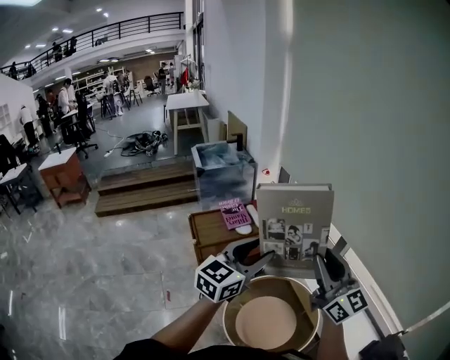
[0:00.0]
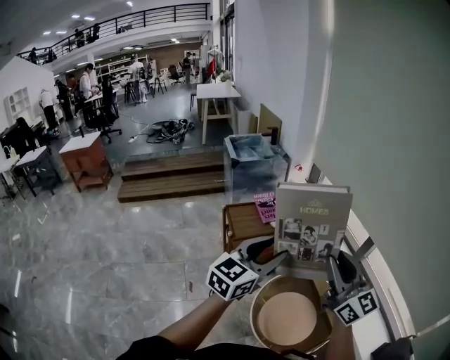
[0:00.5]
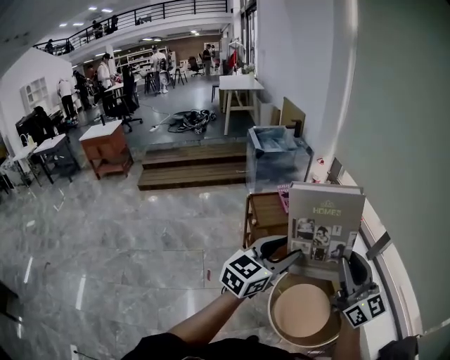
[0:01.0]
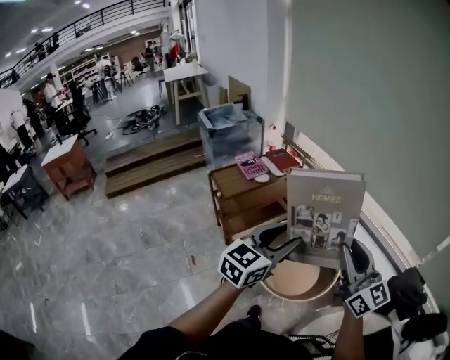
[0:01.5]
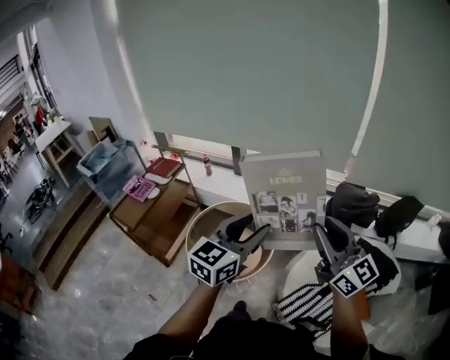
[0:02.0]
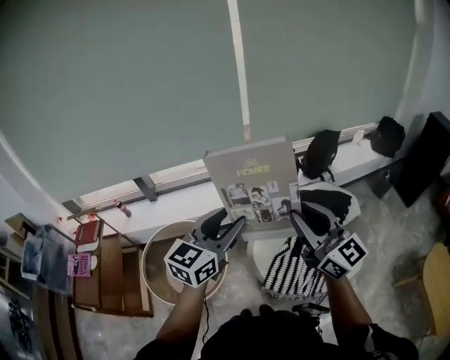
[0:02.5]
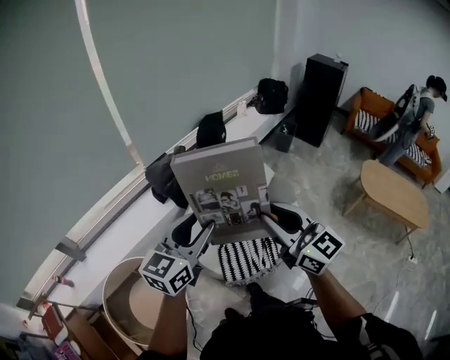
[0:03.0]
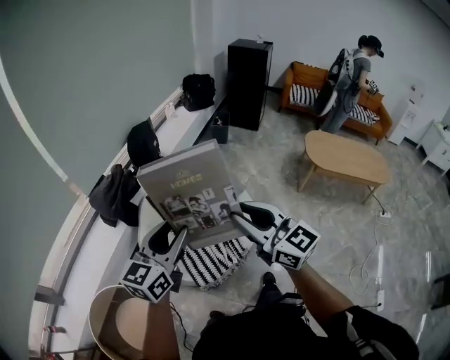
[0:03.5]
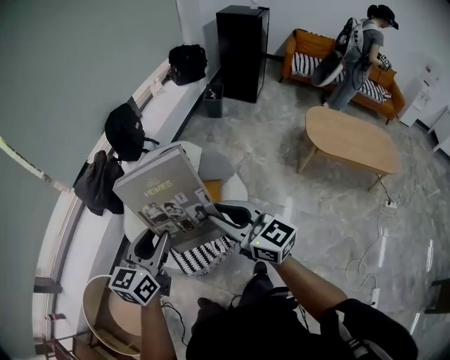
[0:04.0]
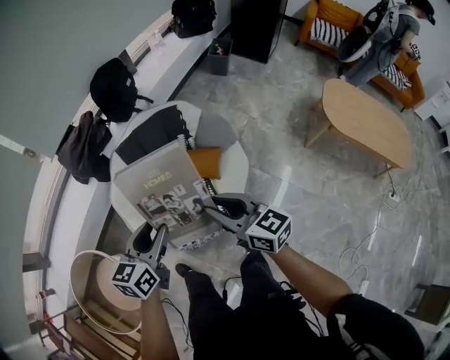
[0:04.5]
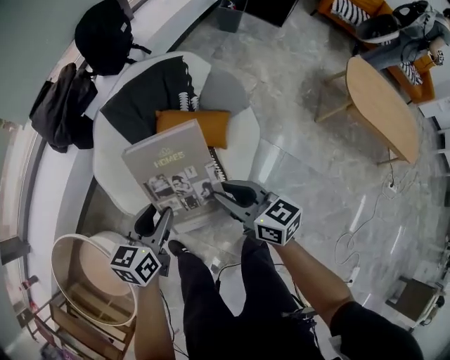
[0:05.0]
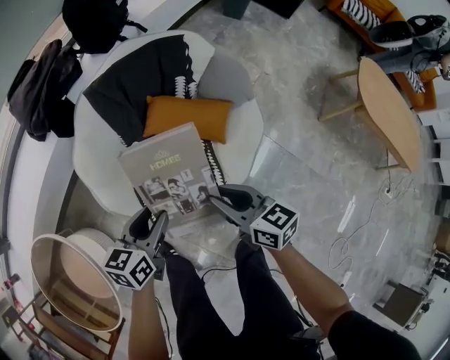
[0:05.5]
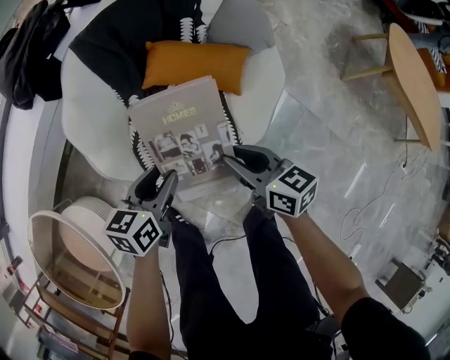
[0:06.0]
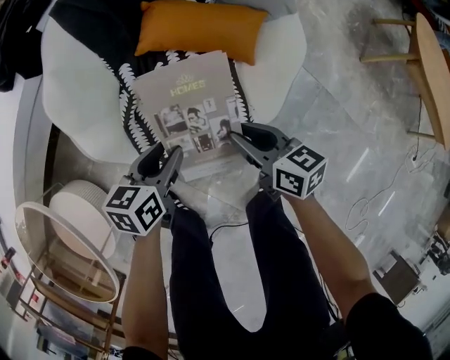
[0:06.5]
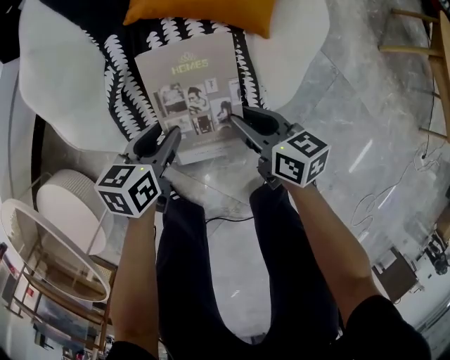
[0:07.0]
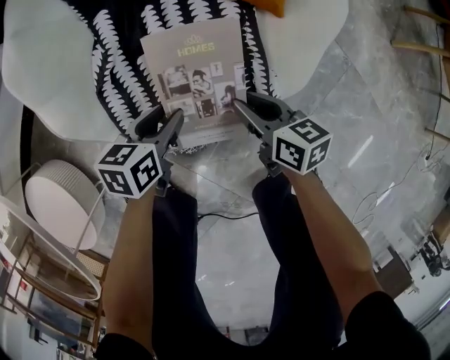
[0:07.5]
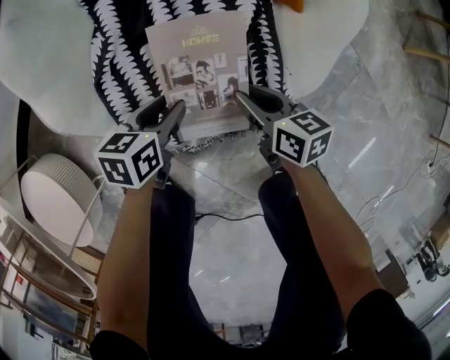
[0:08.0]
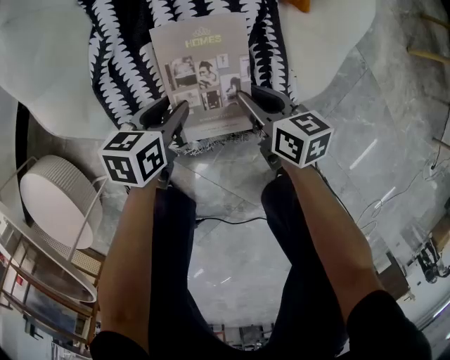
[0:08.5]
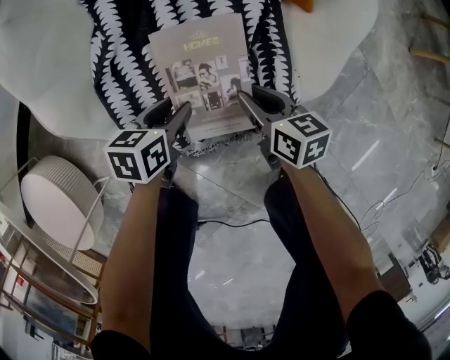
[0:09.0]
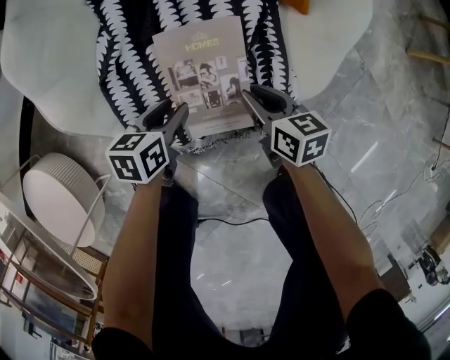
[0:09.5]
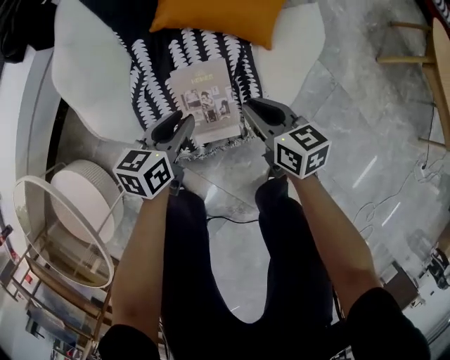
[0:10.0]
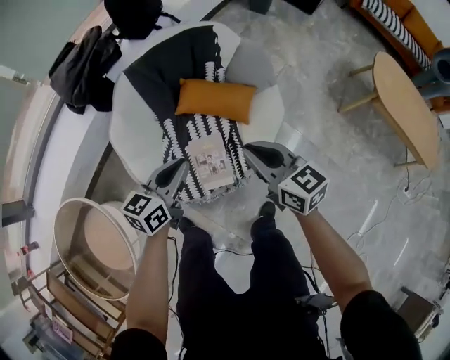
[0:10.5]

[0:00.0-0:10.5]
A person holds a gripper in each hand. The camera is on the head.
0:00.0 to 0:02.0: The right gripper ends up about 40 cm from where it was, and swivels roughly 40 degrees. Meanwhile the left gripper changes place by about 30 cm, and turns by roughly 40 degrees.
0:02.0 to 0:04.0: The two grippers travel together, approximately 50 cm. The right gripper swivels roughly 60 degrees. Meanwhile the left gripper rotates some 60 degrees.
0:04.0 to 0:06.5: The right gripper moves up and down over approximately 40 cm, changing direction 2 times. Meanwhile the left gripper swings up and down, approximately 40 cm each way, with 2 reversals.
0:06.5 to 0:08.5: The grippers make only small movements.
0:08.5 to 0:10.5: The right gripper shifts some 50 cm upward and backward, and rotates some 30 degrees, while the left gripper heads upward, covering approximately 40 cm, rotates about 30 degrees, and closes its fingers.

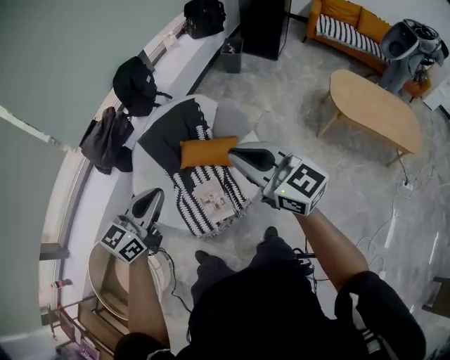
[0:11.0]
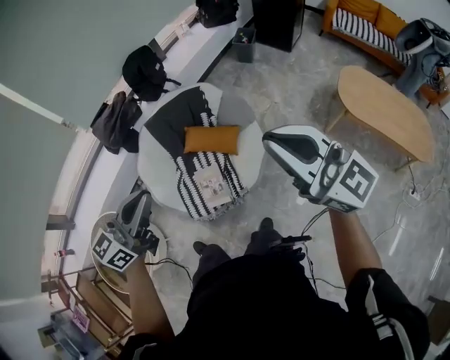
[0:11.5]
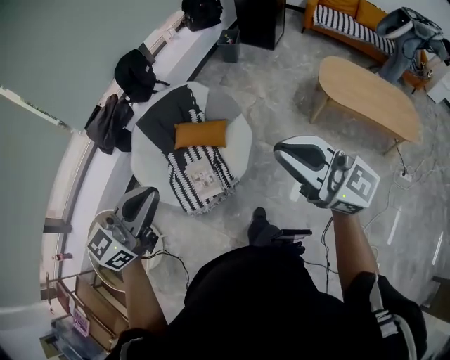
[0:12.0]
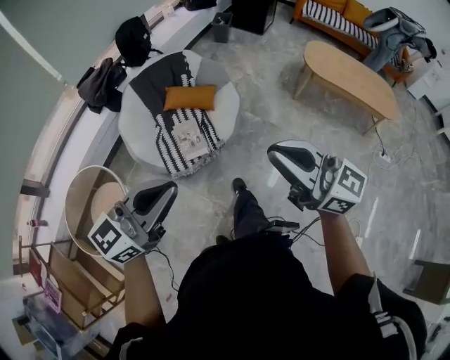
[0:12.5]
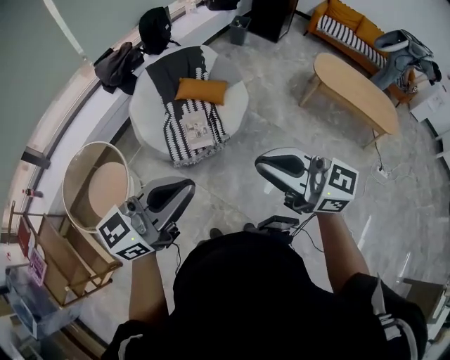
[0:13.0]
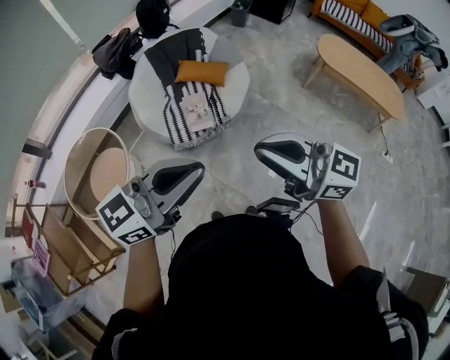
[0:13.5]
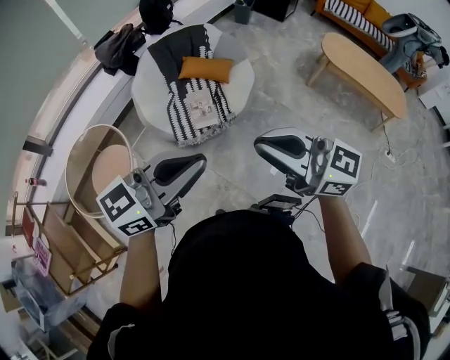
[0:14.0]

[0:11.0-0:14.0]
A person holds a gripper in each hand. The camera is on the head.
0:11.0 to 0:12.5: Both grippers travel together backward, some 40 cm.
0:12.5 to 0:14.0: The left gripper shifts by approximately 10 cm, while the right gripper moves some 10 cm.

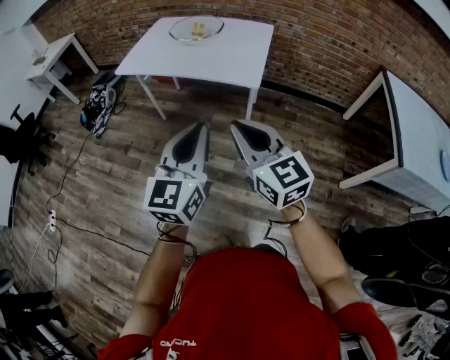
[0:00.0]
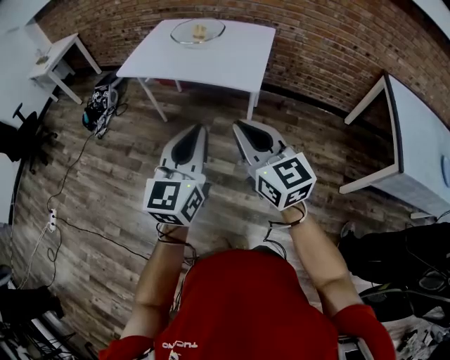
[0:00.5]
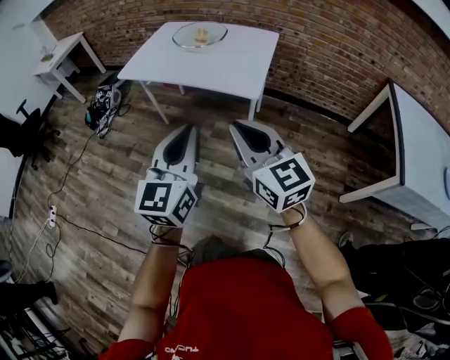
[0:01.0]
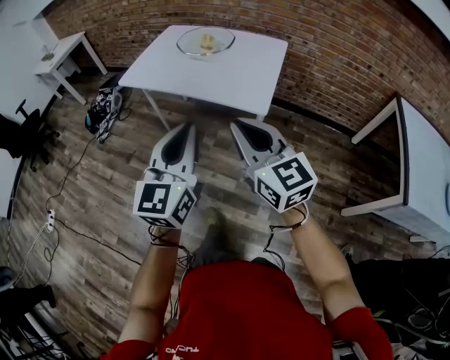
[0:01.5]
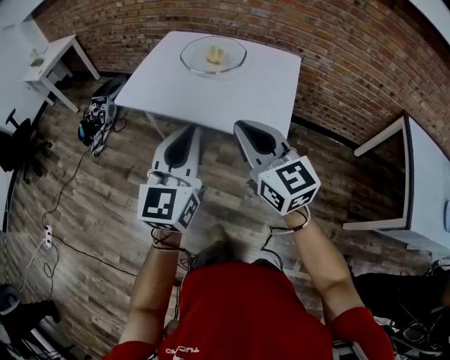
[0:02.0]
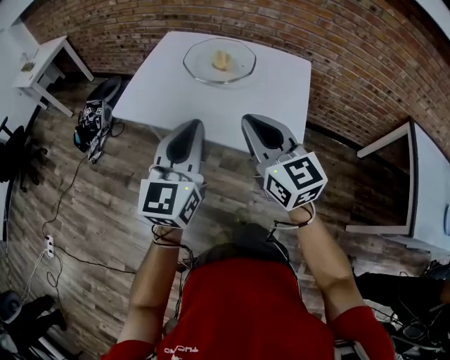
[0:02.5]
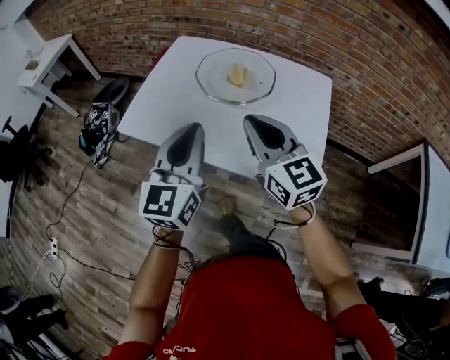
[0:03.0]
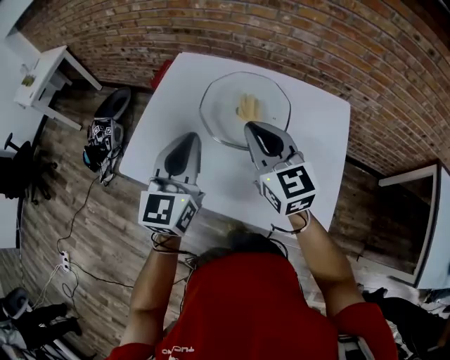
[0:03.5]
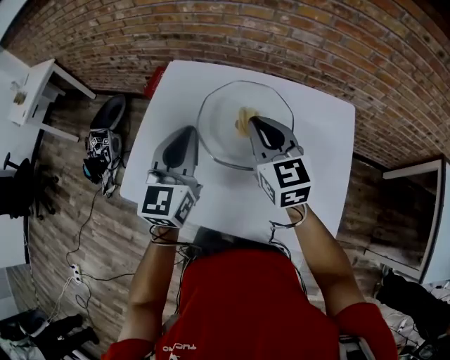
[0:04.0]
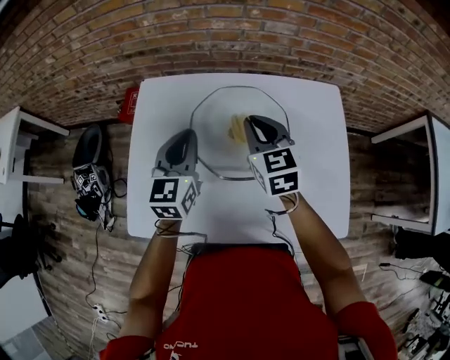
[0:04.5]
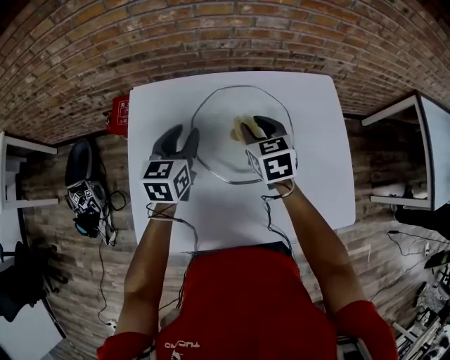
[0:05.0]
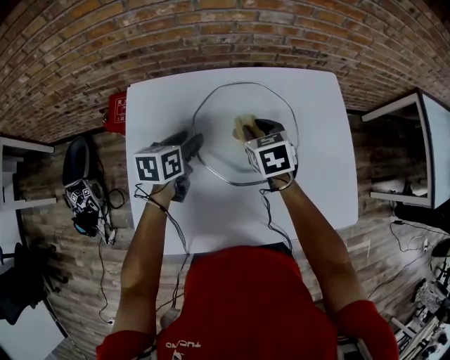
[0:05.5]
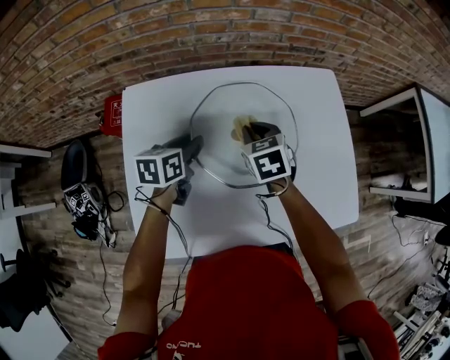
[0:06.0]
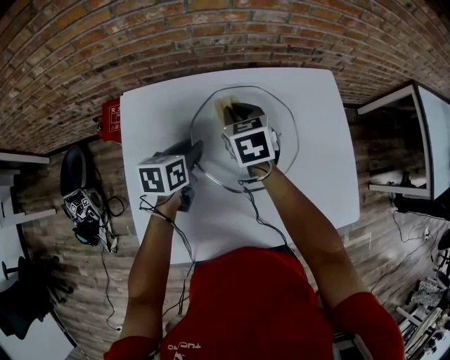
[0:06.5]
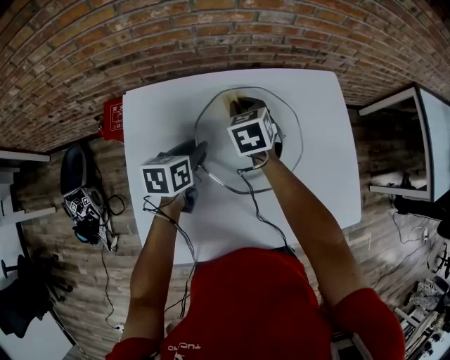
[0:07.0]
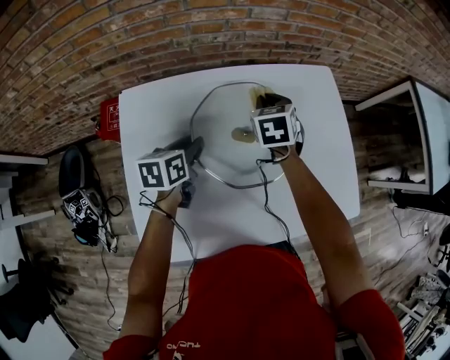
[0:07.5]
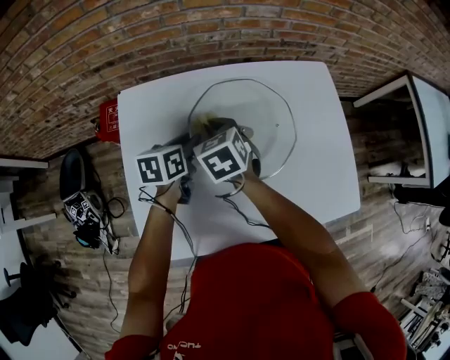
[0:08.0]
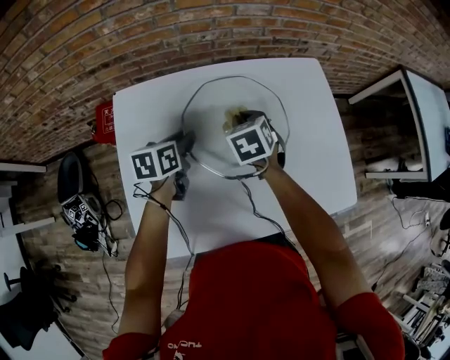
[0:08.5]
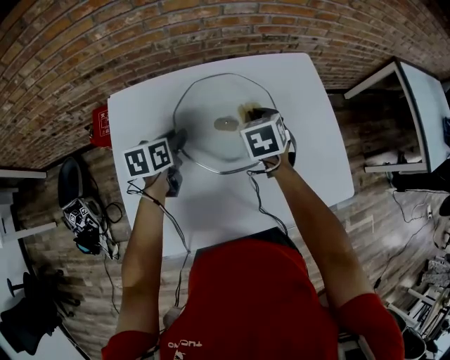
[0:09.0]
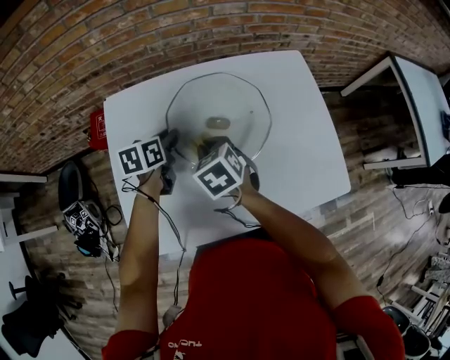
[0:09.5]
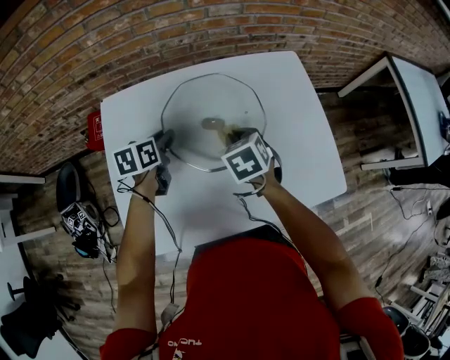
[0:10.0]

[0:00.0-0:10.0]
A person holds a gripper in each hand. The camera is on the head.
0:00.0 to 0:02.0: The grippers both shift forward by roughly 30 cm.
0:02.0 to 0:04.0: Both grippers are carried forward, about 50 cm.
0:04.0 to 0:06.0: Both grippers move downward, approximately 20 cm. The left gripper tips its fingers downward by about 30 degrees, and opens up. The right gripper points its fingers some 40 degrees further downward.
0:06.0 to 0:08.0: The right gripper swings left and right, approximately 15 cm each way, with 2 reversals.
0:08.0 to 0:10.0: The right gripper goes left and right, some 15 cm each way, reversing 2 times.

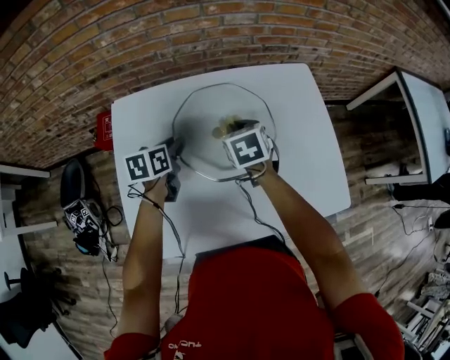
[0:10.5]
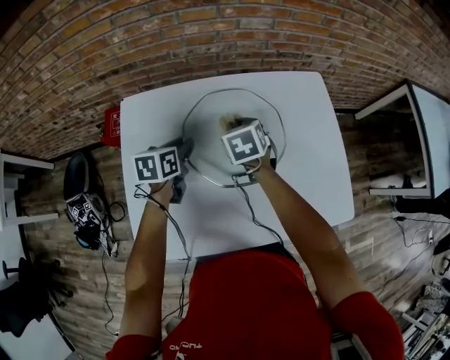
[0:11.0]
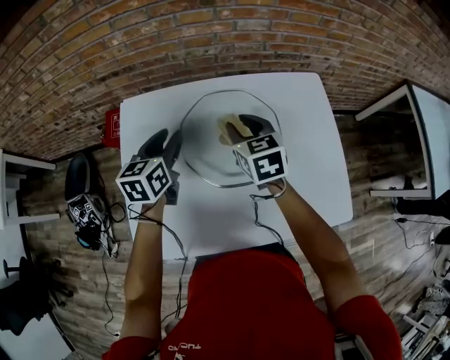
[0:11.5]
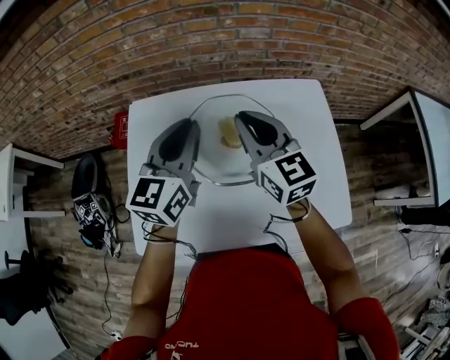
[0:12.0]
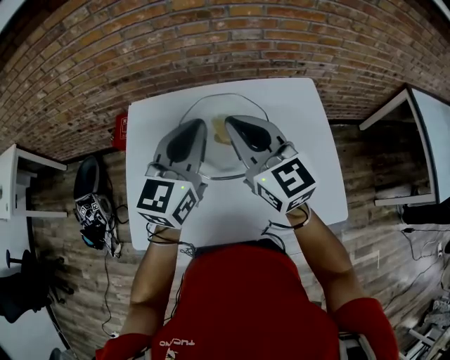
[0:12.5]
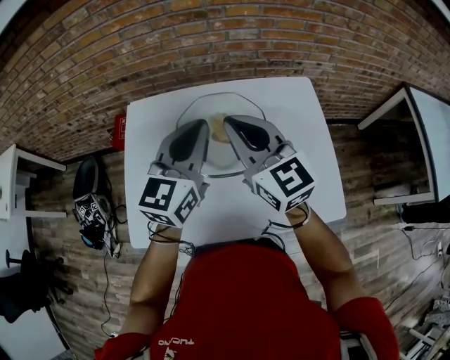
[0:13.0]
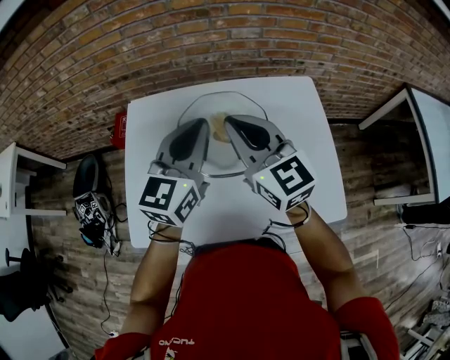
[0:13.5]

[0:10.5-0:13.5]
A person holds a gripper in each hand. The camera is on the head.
0:10.5 to 0:12.0: Both grippers move upward, roughly 20 cm. The left gripper tips its fingers upward by some 40 degrees; the right gripper points its fingers some 40 degrees further upward.
0:12.0 to 0:13.5: The left gripper travels to the right by some 5 cm. Meanwhile the right gripper moves backward, some 5 cm.
